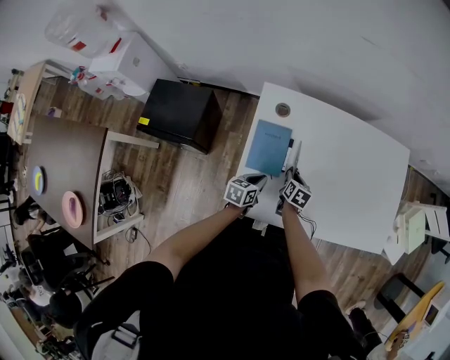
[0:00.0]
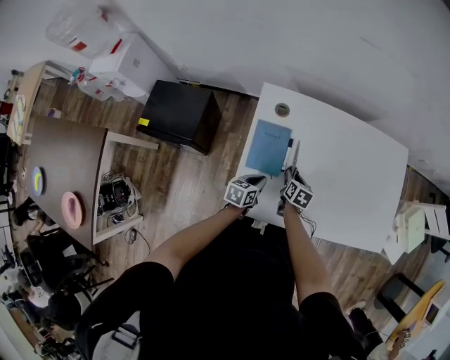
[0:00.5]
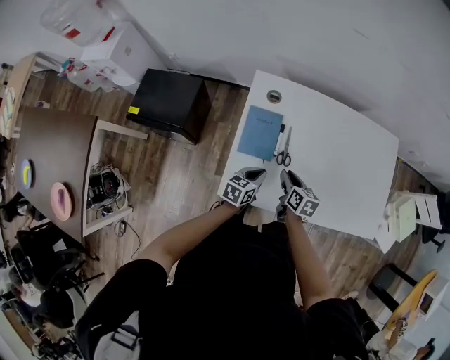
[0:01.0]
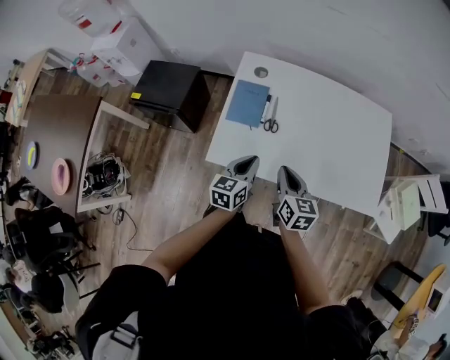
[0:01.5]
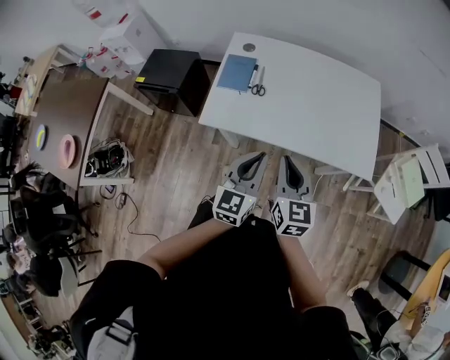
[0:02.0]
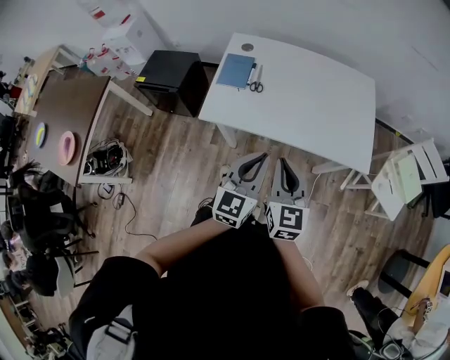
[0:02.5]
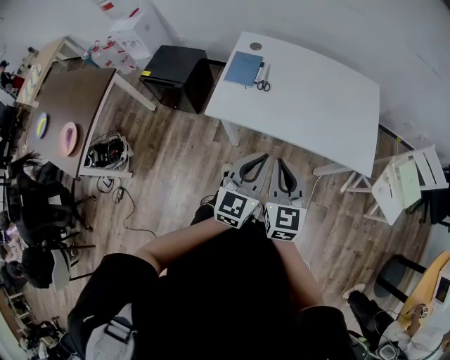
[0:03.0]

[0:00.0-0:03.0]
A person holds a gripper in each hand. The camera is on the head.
0.0 to 1.5 s: The right gripper travels upward and backward by about 30 cm, and rotates about 30 degrees; the left gripper shifts approximately 20 cm upward, backward and to the right, and swivels about 30 degrees.
1.5 to 3.0 s: The left gripper is displaced backward, upward and to the right by some 30 cm, and changes its angle by roughly 30 degrees; the right gripper shifts about 25 cm backward and upward, and rotates roughly 30 degrees.

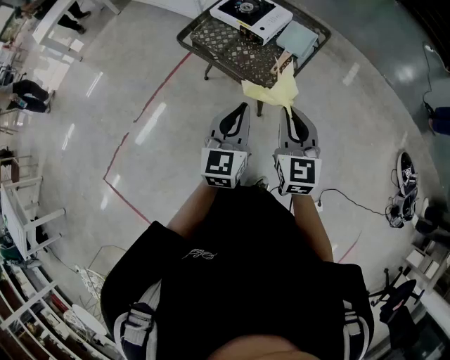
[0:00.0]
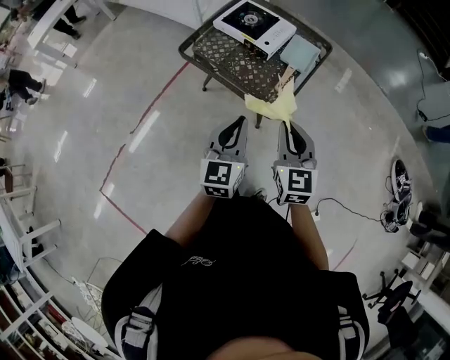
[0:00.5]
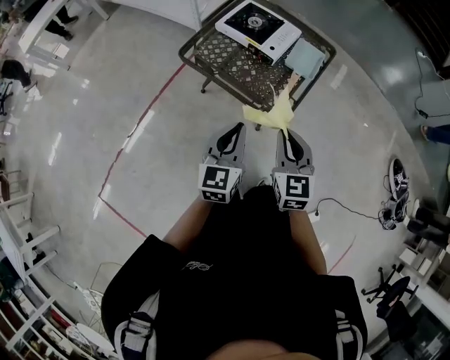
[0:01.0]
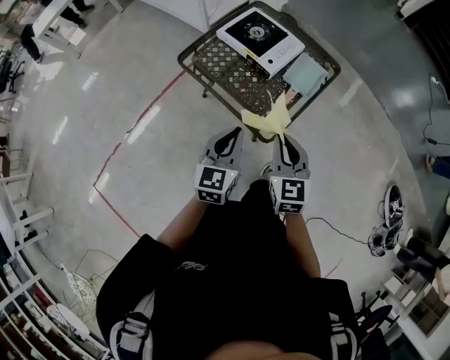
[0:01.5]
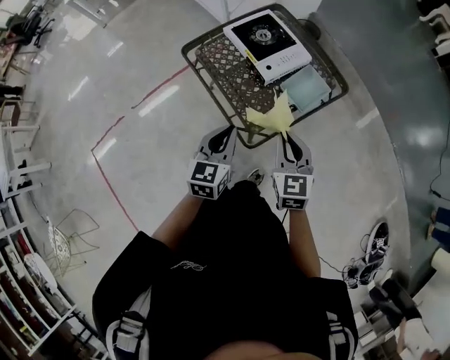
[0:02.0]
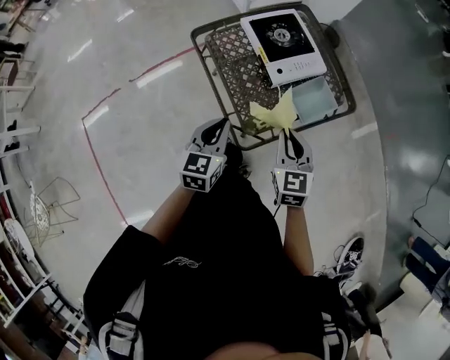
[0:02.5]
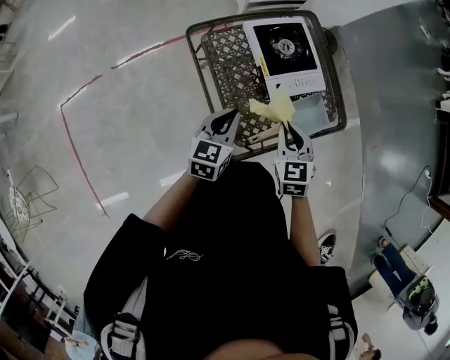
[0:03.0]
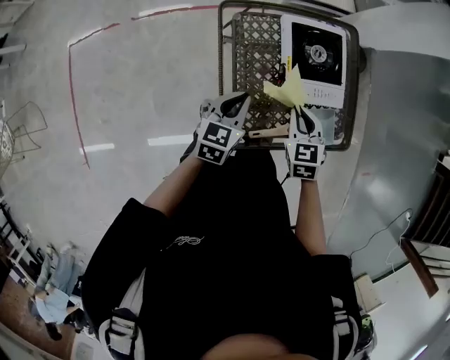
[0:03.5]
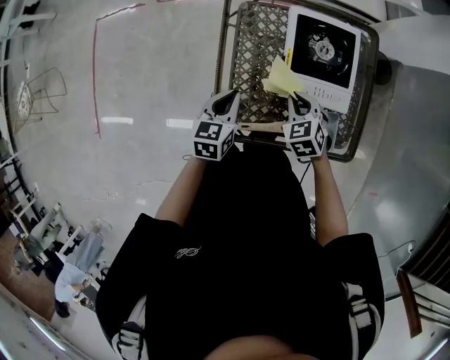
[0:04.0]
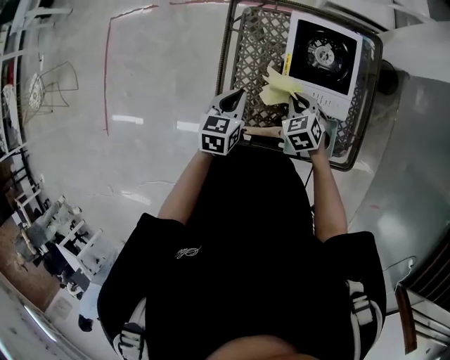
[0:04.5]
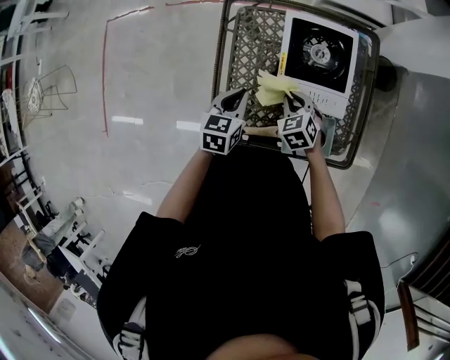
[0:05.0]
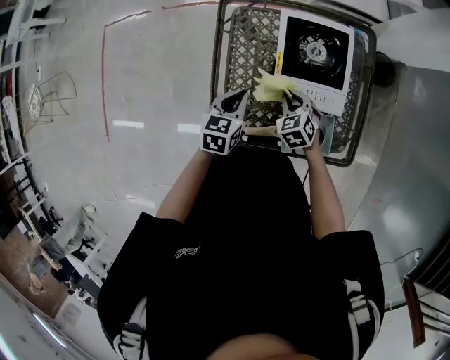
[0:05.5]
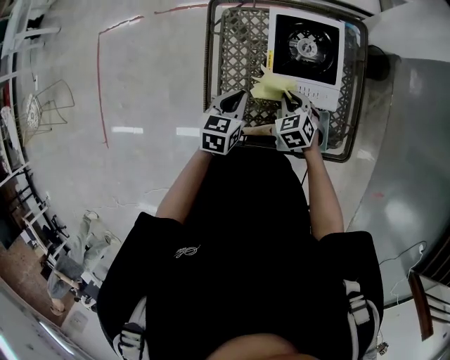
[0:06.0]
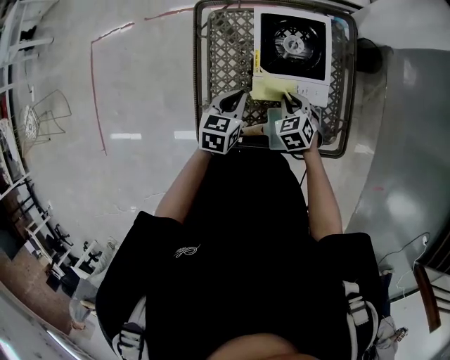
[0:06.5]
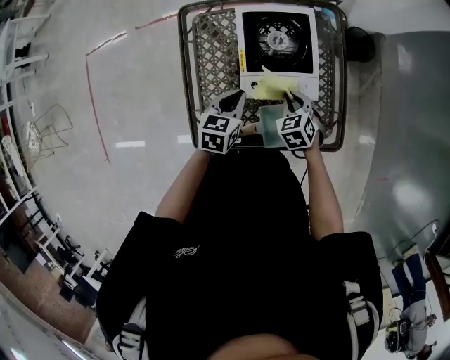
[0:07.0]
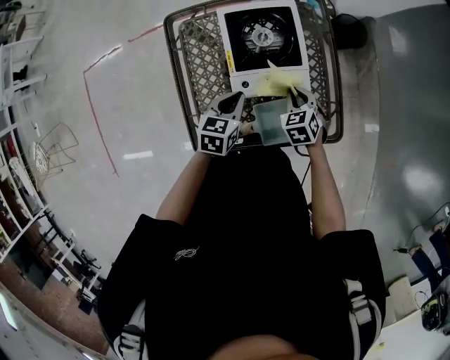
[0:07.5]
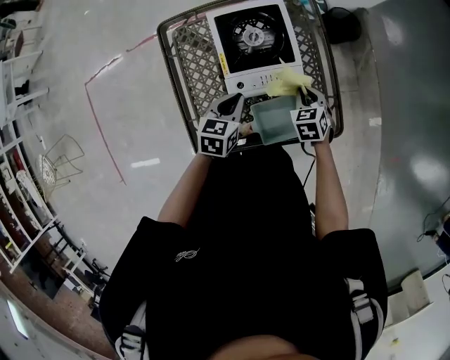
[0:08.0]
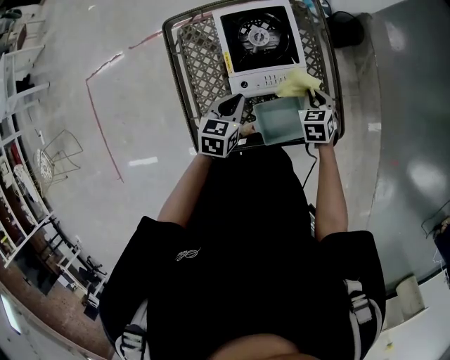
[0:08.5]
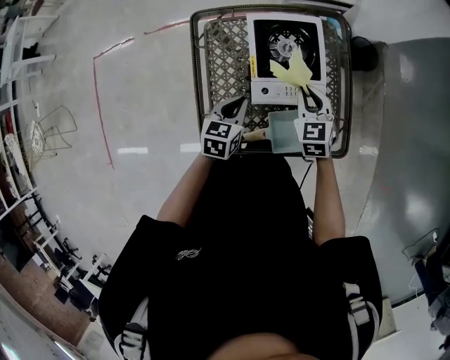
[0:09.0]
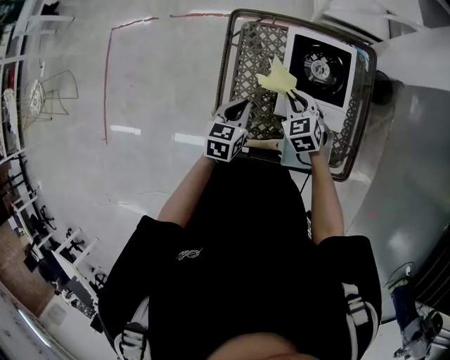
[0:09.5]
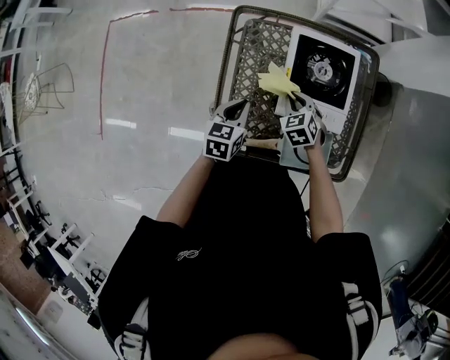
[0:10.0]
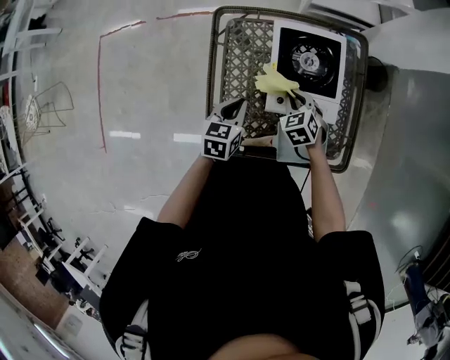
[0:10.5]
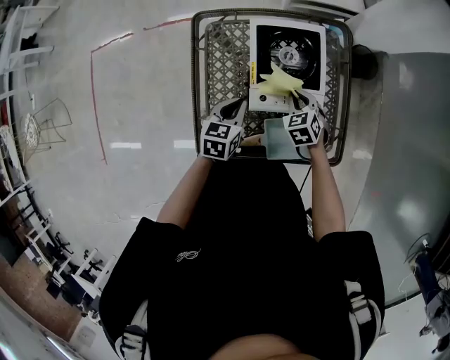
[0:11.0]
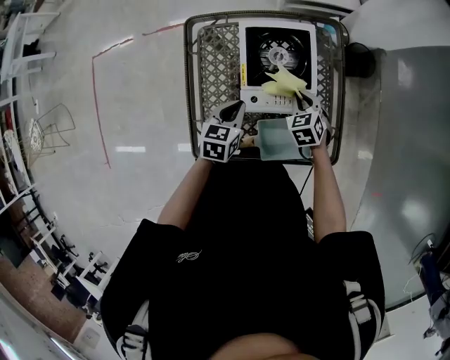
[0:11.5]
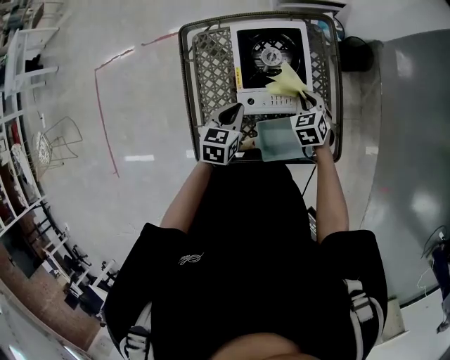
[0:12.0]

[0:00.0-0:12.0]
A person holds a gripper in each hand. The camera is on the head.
0.0 to 2.0 s: The left gripper moves forward and downward, approximately 20 cm, and swivels approximately 20 degrees. Meanwhile the right gripper travels forward by some 20 cm, and rotates some 20 degrees.
2.0 to 4.0 s: The left gripper ends up about 20 cm from where it was, and changes its angle by some 40 degrees. Meanwhile the right gripper shifts by some 35 cm, and turns by some 60 degrees.
4.0 to 6.0 s: The left gripper shifts some 10 cm to the right. Meanwhile the right gripper ends up approximately 5 cm from where it was.
6.0 to 8.0 s: The left gripper is displaced to the right by approximately 10 cm, while the right gripper travels to the right by approximately 20 cm, and rotates roughly 30 degrees.
8.0 to 10.0 s: The right gripper reaches about 10 cm upward, then returns, and turns by roughly 30 degrees, while the left gripper moves about 15 cm, and turns by approximately 20 degrees.
10.0 to 12.0 s: The right gripper travels to the right by approximately 20 cm; the left gripper is displaced to the right by about 15 cm.

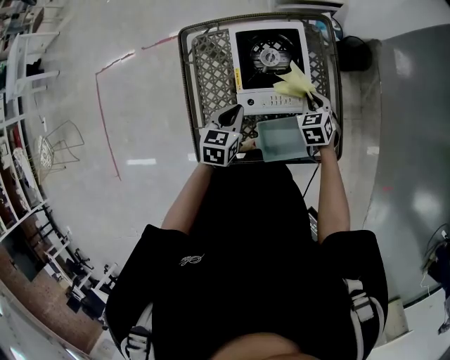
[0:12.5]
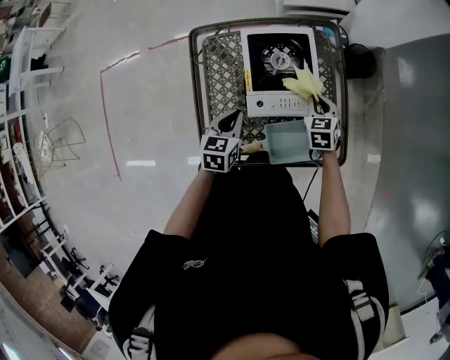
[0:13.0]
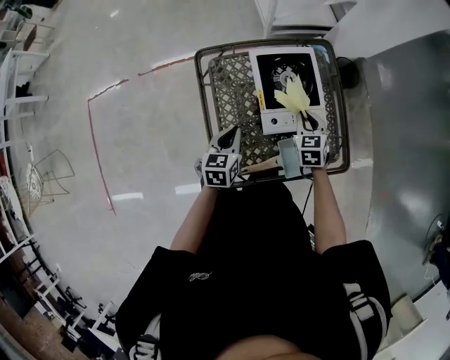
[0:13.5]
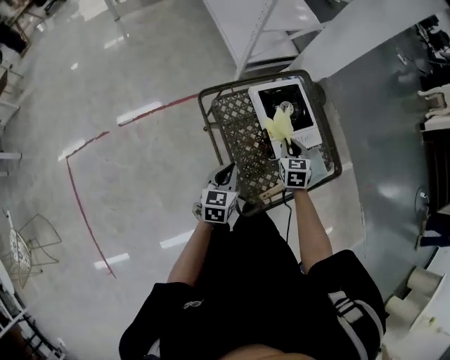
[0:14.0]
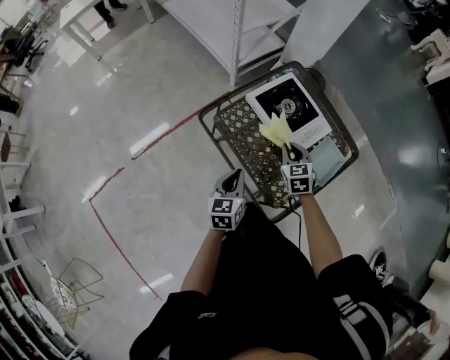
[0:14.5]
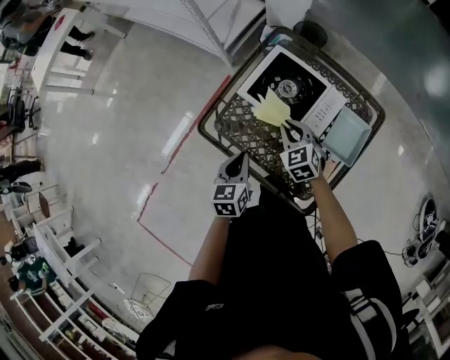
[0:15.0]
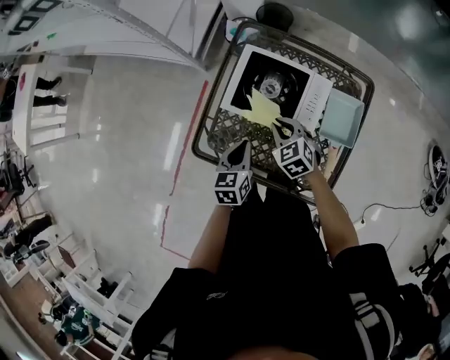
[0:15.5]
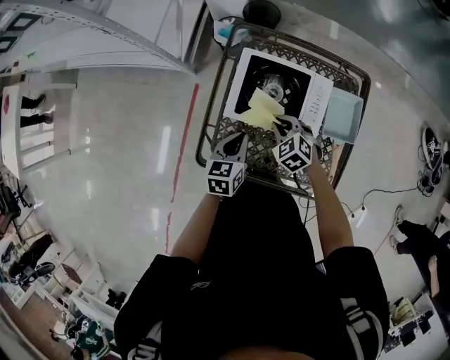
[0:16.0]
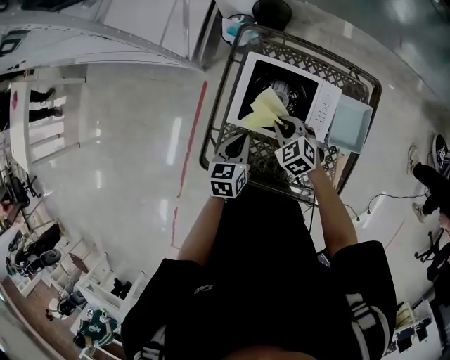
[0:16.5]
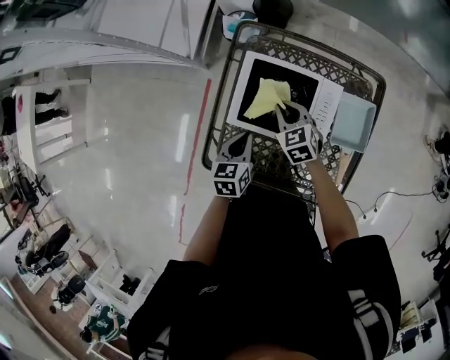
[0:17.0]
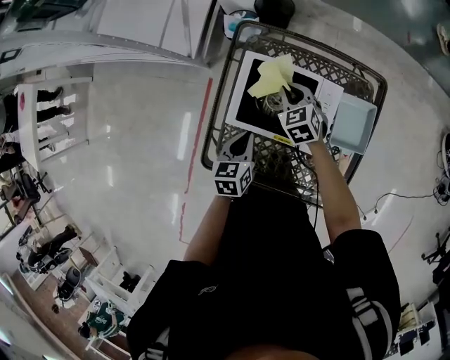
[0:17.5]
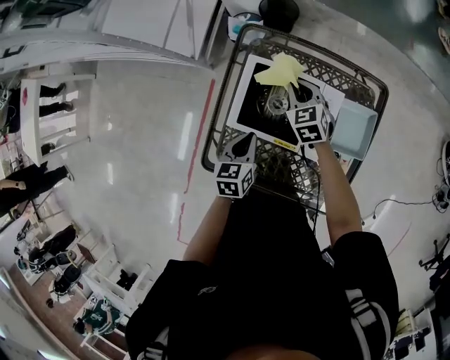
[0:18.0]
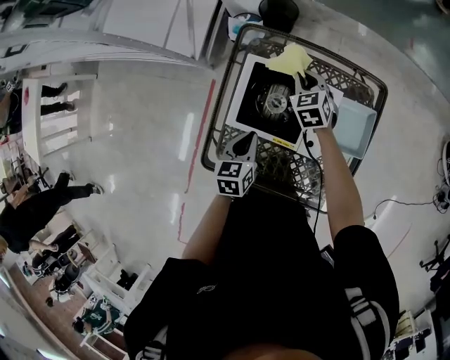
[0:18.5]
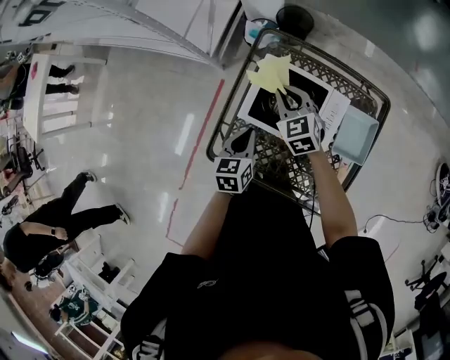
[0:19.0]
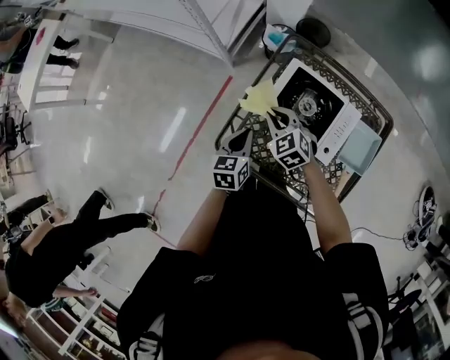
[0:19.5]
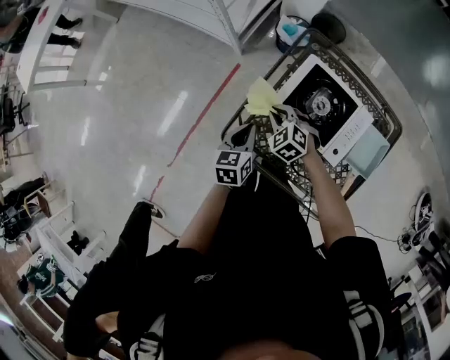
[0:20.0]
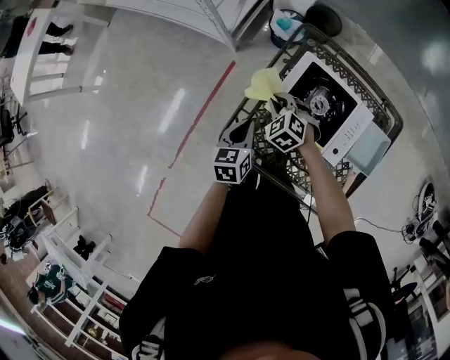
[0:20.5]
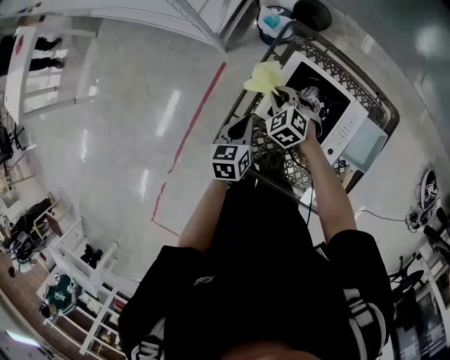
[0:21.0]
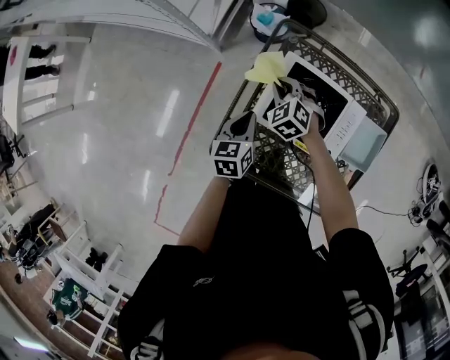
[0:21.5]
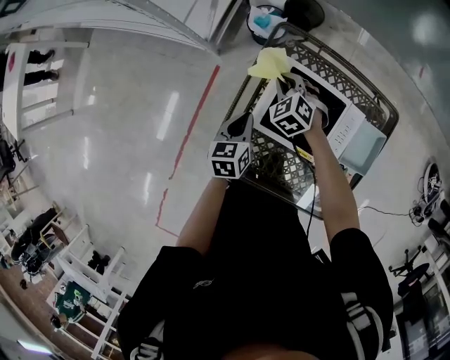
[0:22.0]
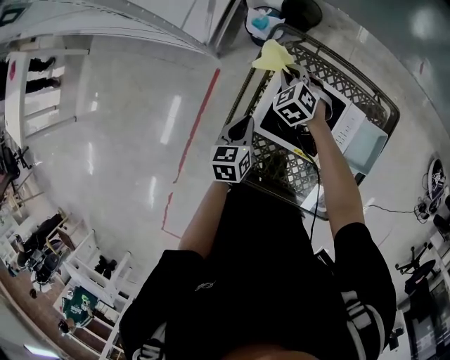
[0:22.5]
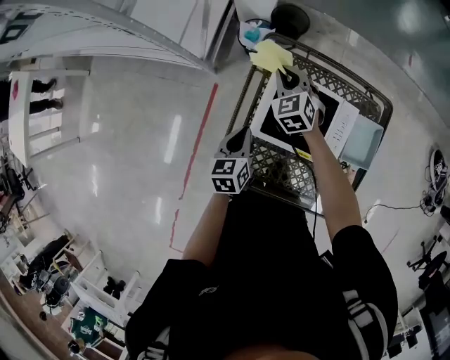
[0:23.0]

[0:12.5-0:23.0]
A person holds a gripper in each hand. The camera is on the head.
12.5 to 14.5 s: The left gripper ends up some 25 cm from where it was, and swivels roughly 30 degrees; the right gripper changes place by some 30 cm, and rotates approximately 40 degrees.
14.5 to 16.5 s: The right gripper ends up about 20 cm from where it was; the left gripper changes place by roughly 30 cm, and rotates approximately 40 degrees.
16.5 to 19.0 s: The right gripper heads upward and forward, covering some 15 cm.
19.0 to 21.0 s: The right gripper goes some 15 cm to the left and downward, and turns by some 30 degrees. Meanwhile the left gripper shifts roughly 10 cm to the left.
21.0 to 23.0 s: The right gripper shifts some 15 cm forward, upward and to the right, and turns by about 30 degrees.

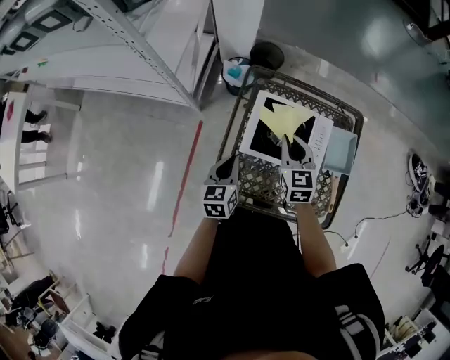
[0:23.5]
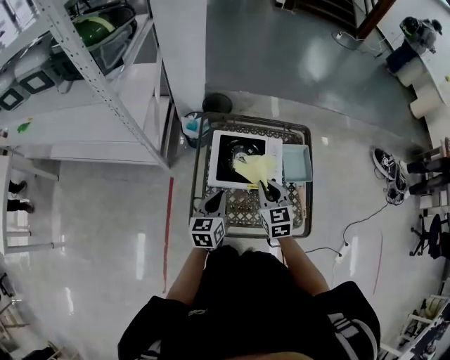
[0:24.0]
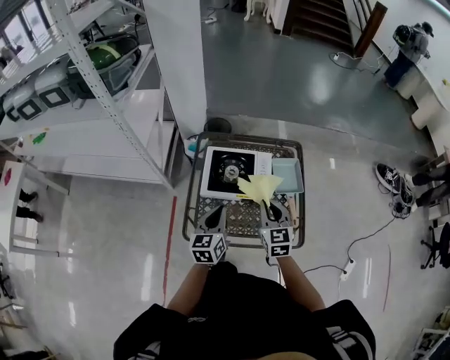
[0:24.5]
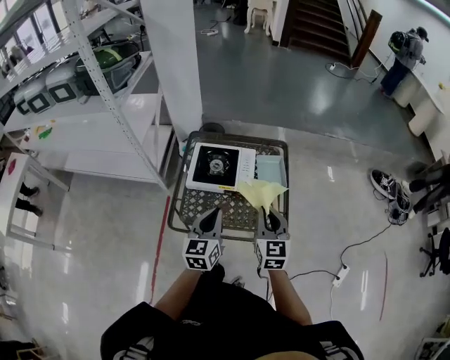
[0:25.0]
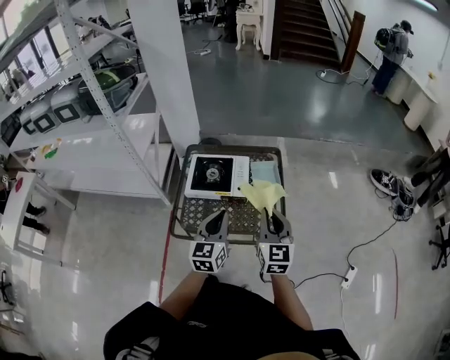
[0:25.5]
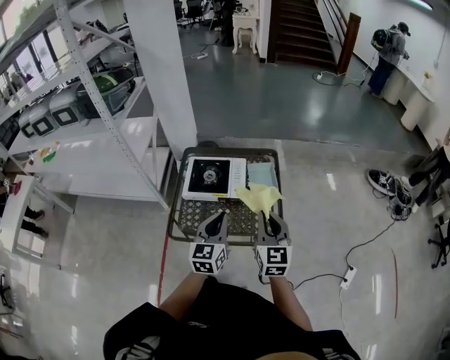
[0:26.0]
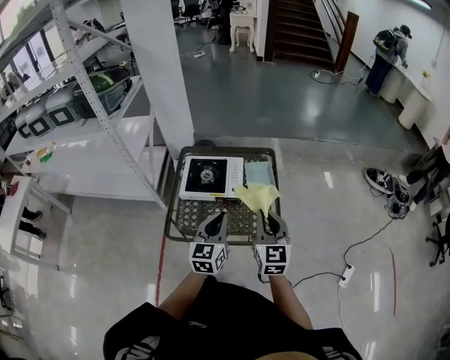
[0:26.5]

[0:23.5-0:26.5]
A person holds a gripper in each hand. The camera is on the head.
23.5 to 25.0 s: The left gripper shifts approximately 35 cm to the right, backward and upward, and rotates approximately 20 degrees, while the right gripper travels backward, to the right and upward by about 40 cm, and swivels roughly 20 degrees.
25.0 to 26.5 s: The left gripper is displaced to the right by some 5 cm; the right gripper shifts approximately 5 cm backward.
